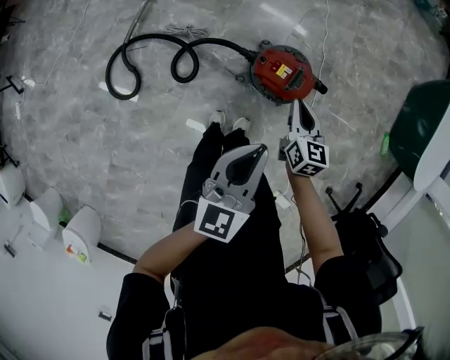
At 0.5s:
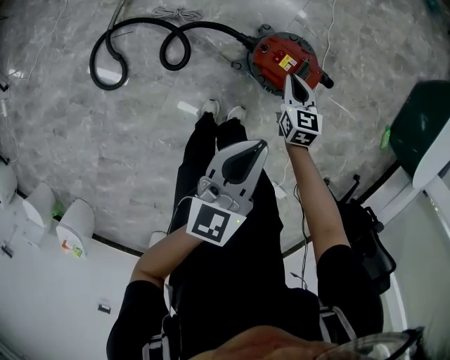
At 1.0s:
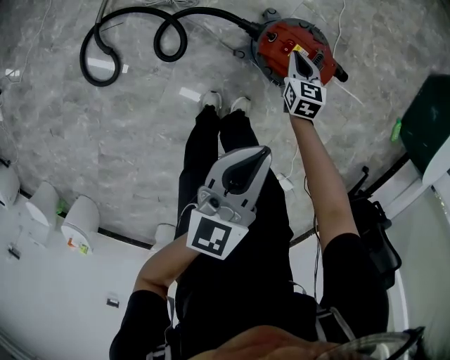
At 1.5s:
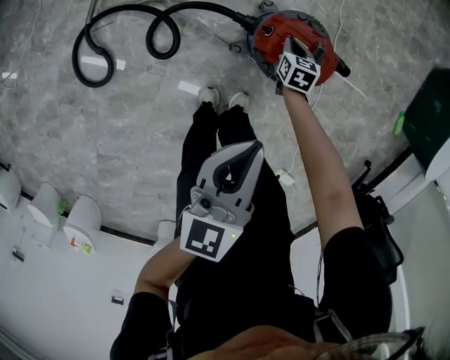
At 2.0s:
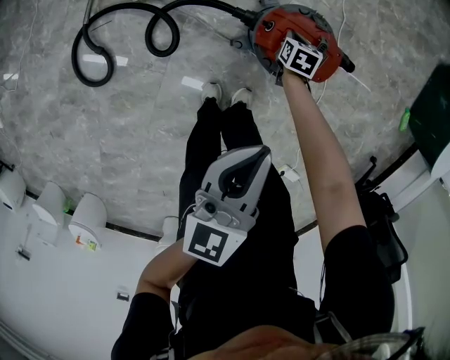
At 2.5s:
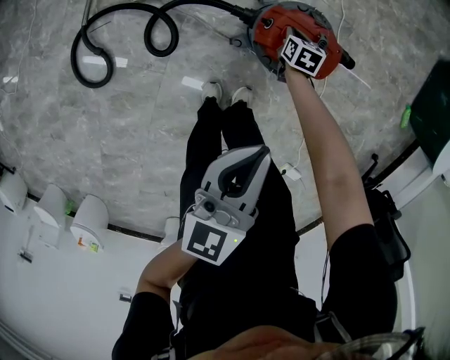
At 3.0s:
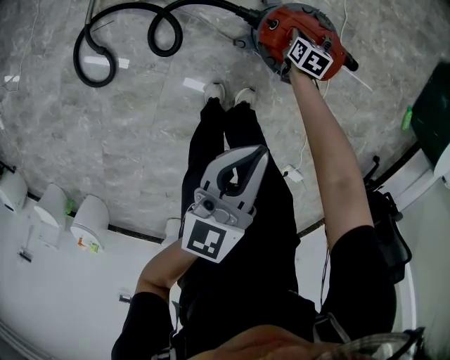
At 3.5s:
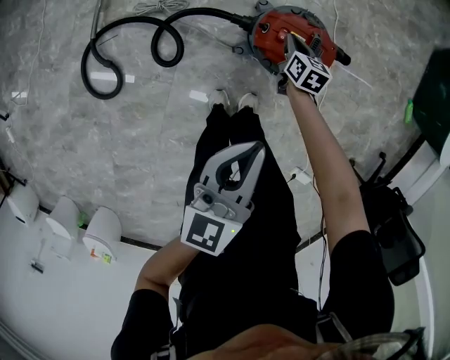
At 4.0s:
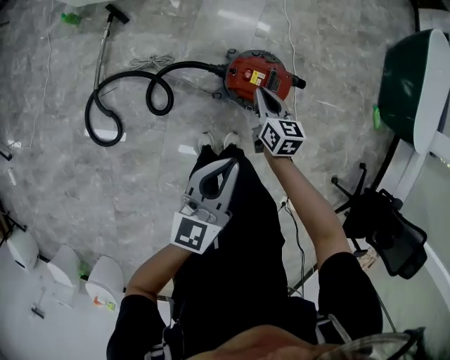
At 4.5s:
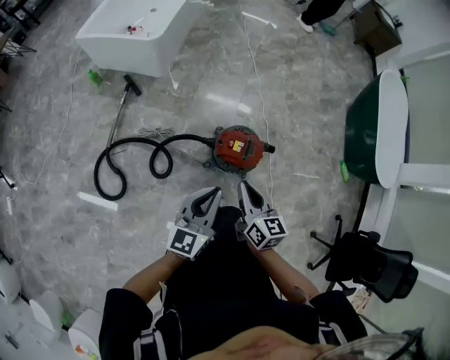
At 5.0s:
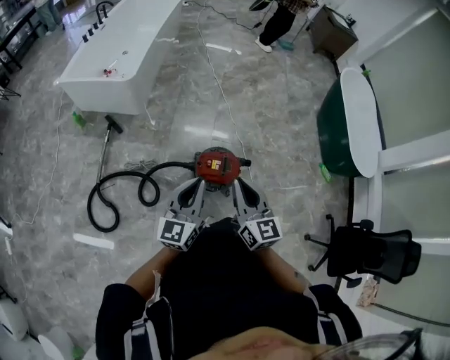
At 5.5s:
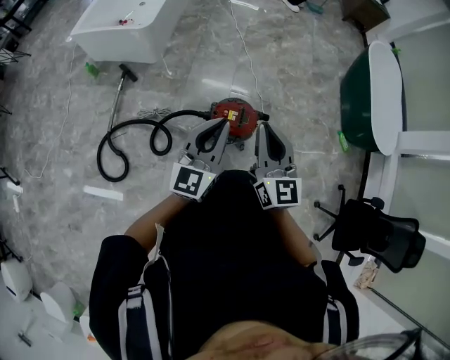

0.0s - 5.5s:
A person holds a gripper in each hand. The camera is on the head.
0.0s - 2.0s: The right gripper moves downward, about 40 cm, and angles its fingers downward, by some 30 degrees. Meanwhile the left gripper goes approximately 15 cm downward.
2.0s - 3.5s: The right gripper heads upward, covering roughly 10 cm.
3.5s - 5.5s: The right gripper shifts about 60 cm upward, and tilts its fingers approximately 40 degrees upward. Meanwhile the left gripper goes about 30 cm upward, and turns by about 30 degrees.

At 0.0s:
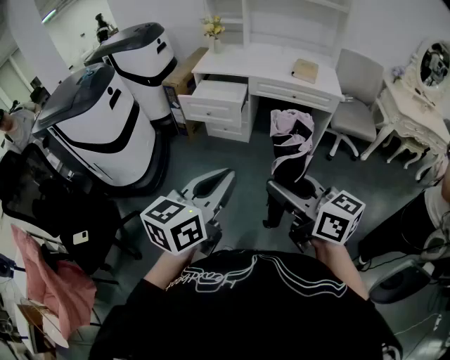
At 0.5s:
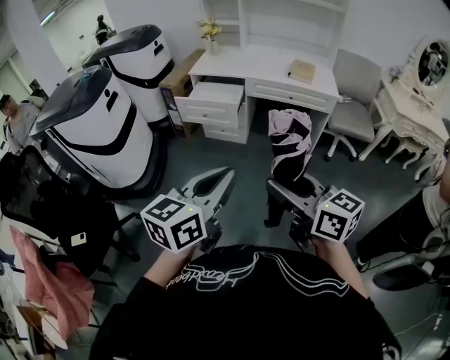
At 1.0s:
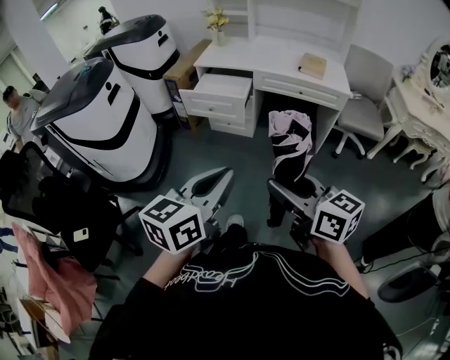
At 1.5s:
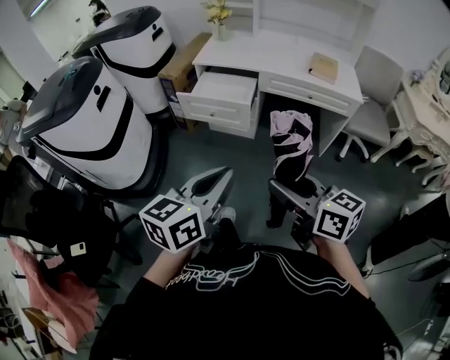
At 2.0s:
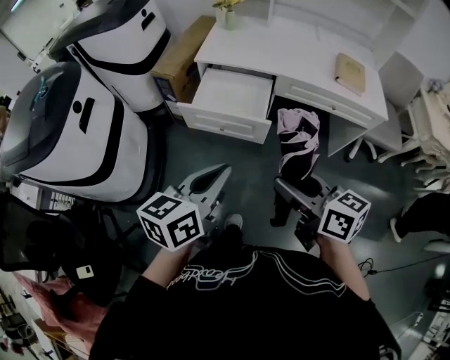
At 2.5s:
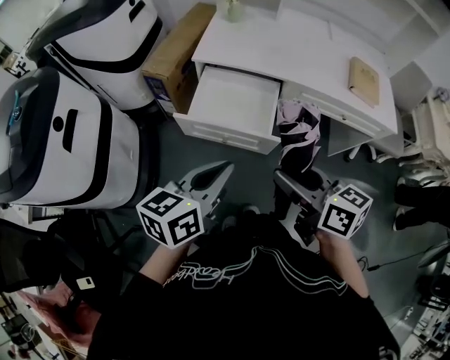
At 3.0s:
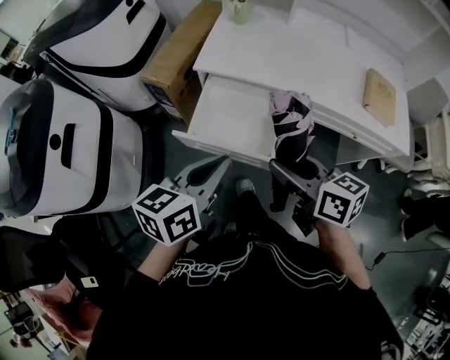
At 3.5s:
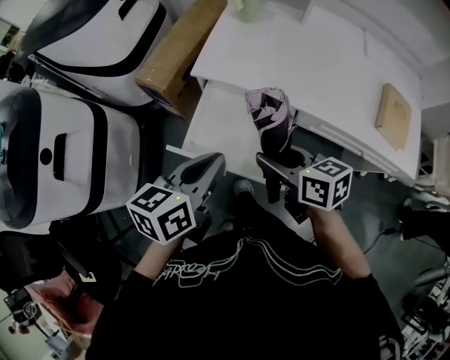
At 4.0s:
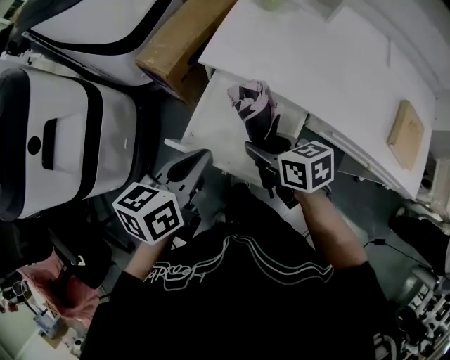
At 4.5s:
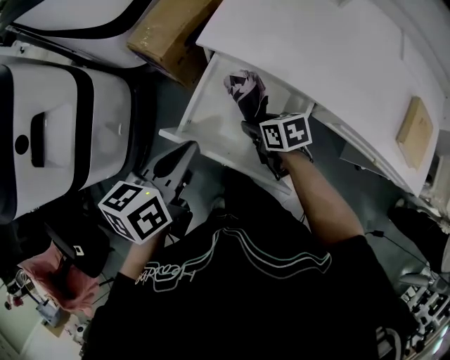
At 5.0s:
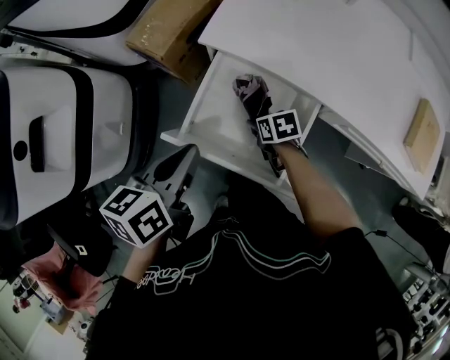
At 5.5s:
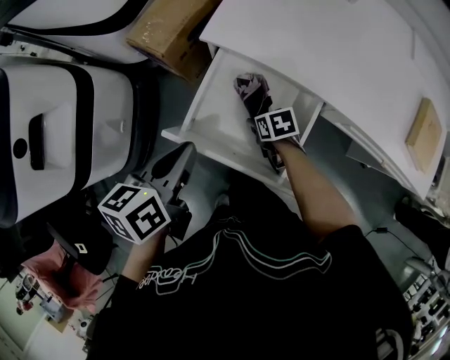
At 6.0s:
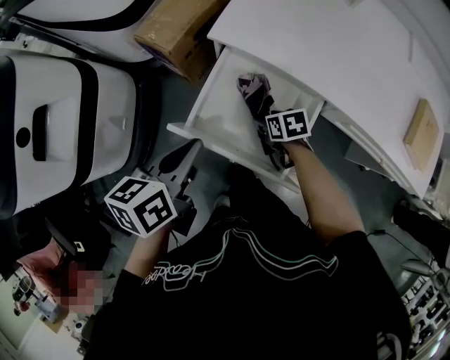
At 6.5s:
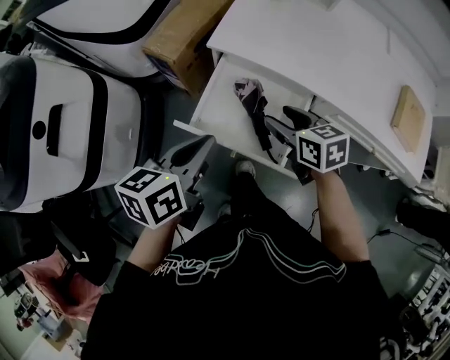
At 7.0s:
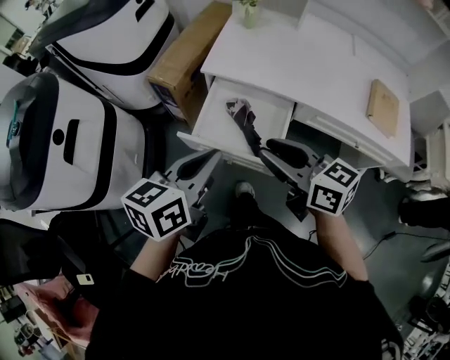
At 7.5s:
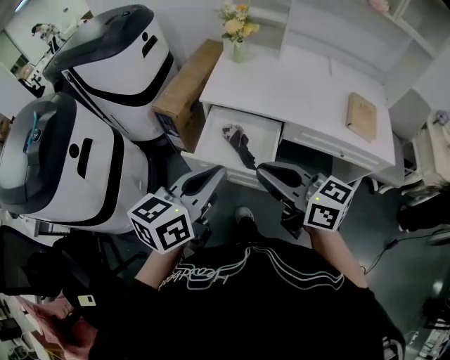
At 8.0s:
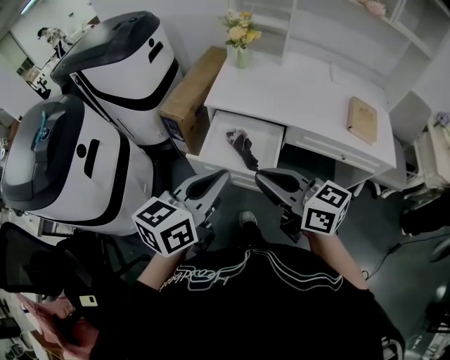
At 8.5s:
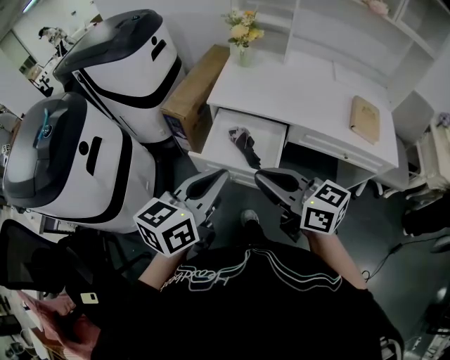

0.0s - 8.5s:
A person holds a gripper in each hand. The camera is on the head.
0.0s - 2.0s: The pair of grippers is taken forward, some 50 cm.
2.0s - 4.0s: The right gripper shifts approximately 50 cm forward and downward, and swivels about 30 degrees. Meanwhile the left gripper goes about 40 cm forward, and rotates approximately 20 degrees.
4.0s - 6.5s: The right gripper reaches approximately 25 cm downward, then returns.
6.5s - 8.5s: Both grippers move backward and upward, about 30 cm. The left gripper turns by some 30 degrees; the right gripper points its fingers roughly 30 degrees further upward, and closes up.

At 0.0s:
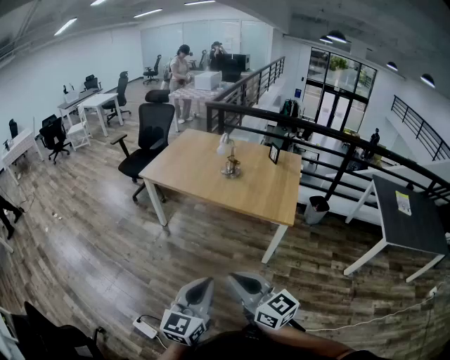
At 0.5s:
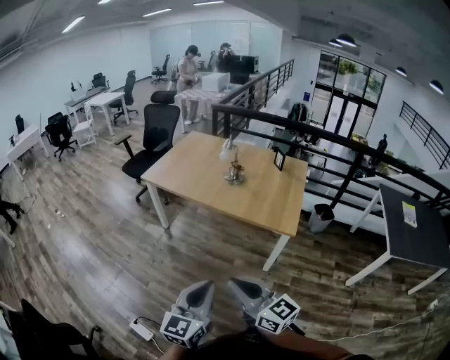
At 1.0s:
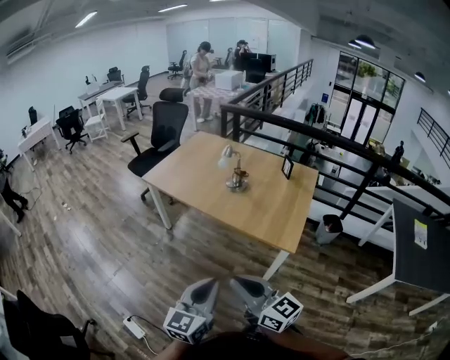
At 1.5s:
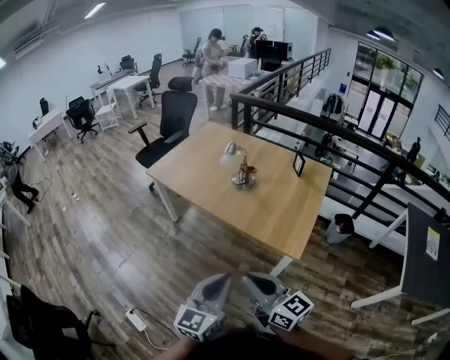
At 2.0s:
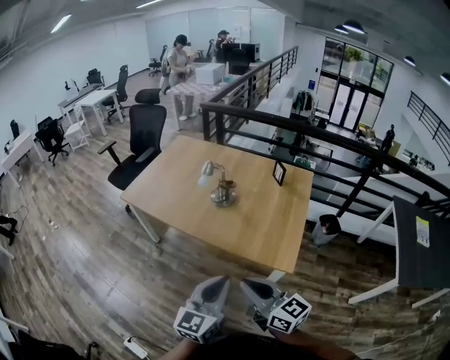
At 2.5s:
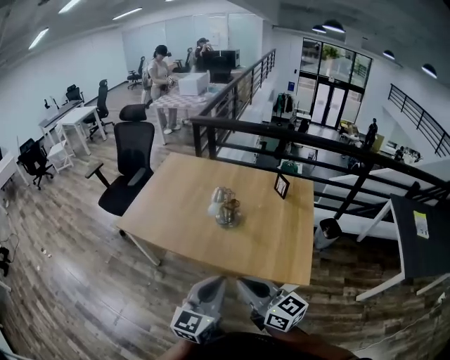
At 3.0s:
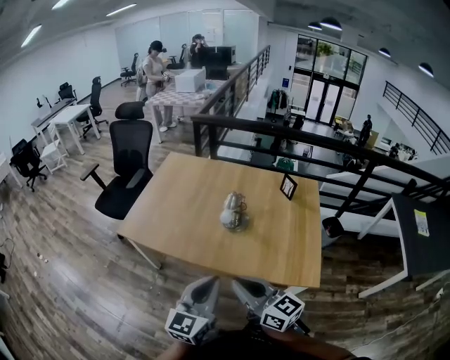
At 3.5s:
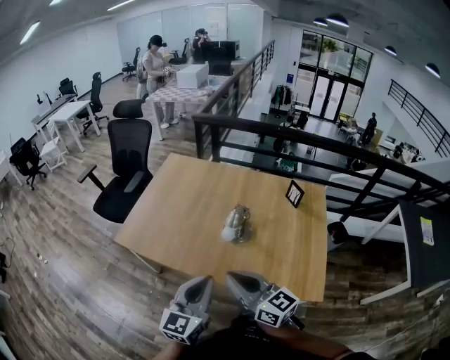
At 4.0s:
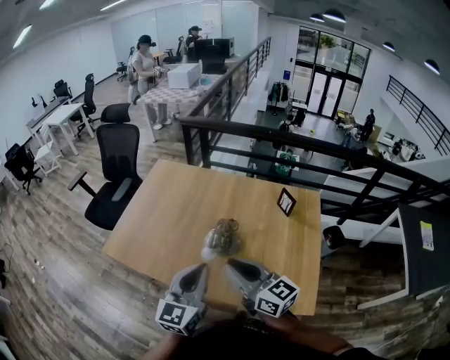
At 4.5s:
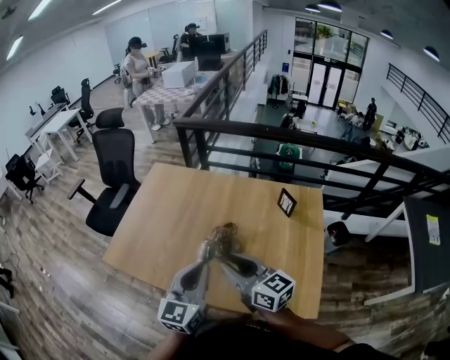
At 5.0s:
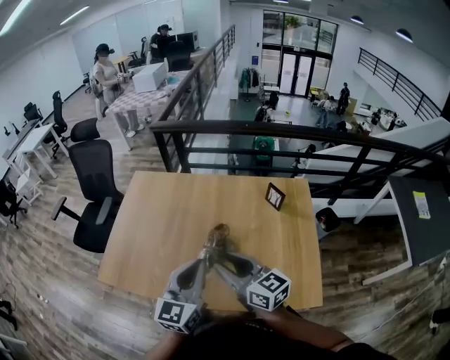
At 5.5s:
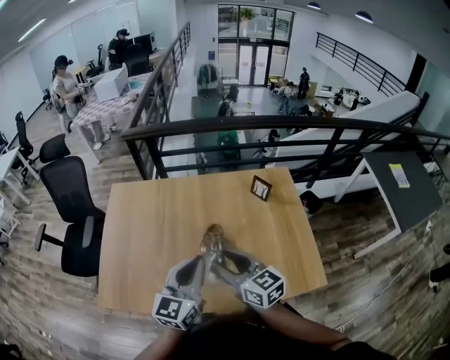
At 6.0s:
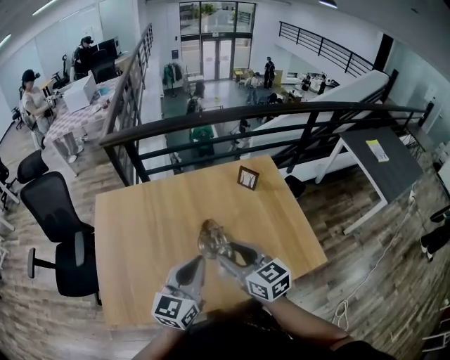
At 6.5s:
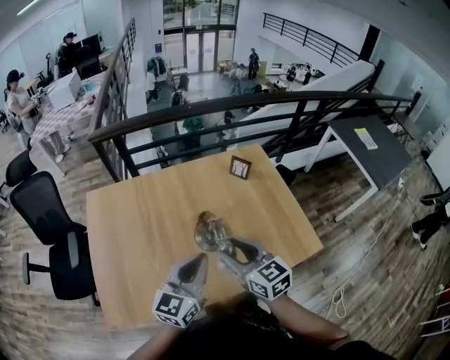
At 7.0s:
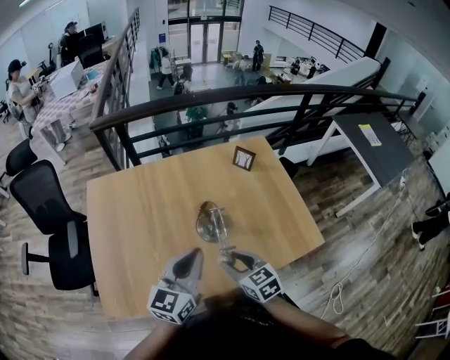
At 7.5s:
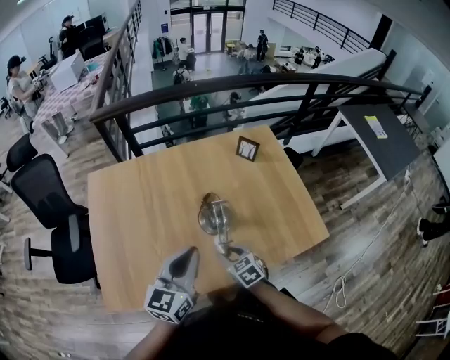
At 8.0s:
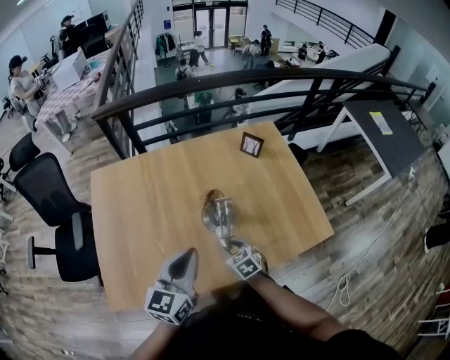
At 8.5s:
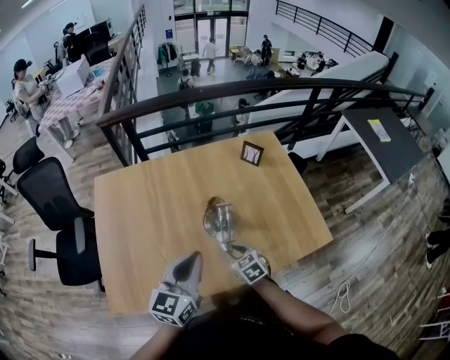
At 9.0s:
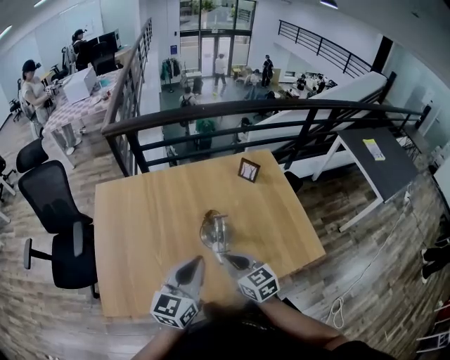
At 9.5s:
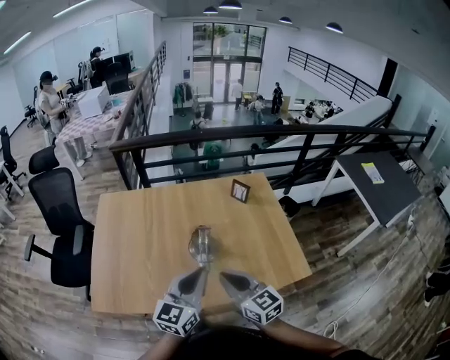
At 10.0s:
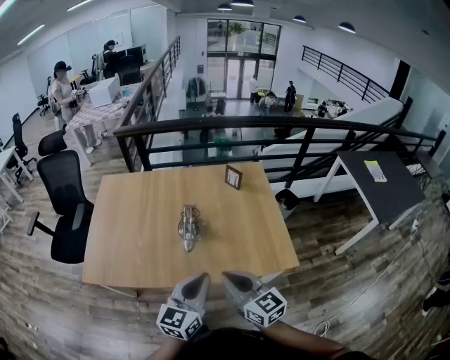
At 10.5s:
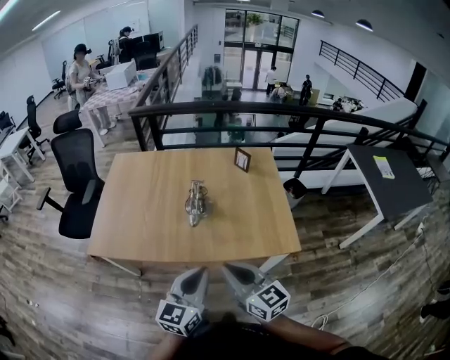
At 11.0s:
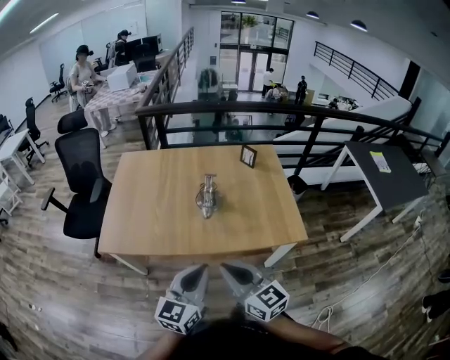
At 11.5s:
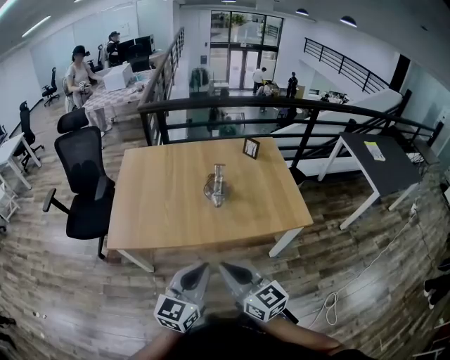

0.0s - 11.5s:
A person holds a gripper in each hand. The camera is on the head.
0.0s - 2.0s: Both grippers travel together forward and to the right, about 35 cm.
2.0s - 4.0s: The grippers both shift forward by about 35 cm.
4.0s - 6.0s: The left gripper ends up about 10 cm from where it was, and changes its angle by some 30 degrees; the right gripper moves about 10 cm, swivels roughly 40 degrees, and opens.
6.0s - 7.5s: The left gripper ends up roughly 5 cm from where it was. Meanwhile the right gripper heads downward, covering roughly 25 cm, and points its fingers about 30 degrees further downward.
7.5s - 9.5s: The right gripper shifts some 25 cm upward, tips its fingers upward by some 40 degrees, and closes its fingers. The left gripper heads to the right and backward, covering about 10 cm.
9.5s - 11.5s: Both grippers move backward, roughly 25 cm.

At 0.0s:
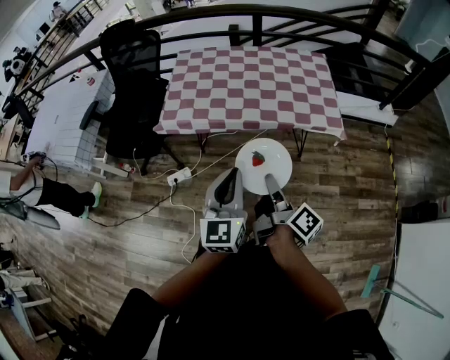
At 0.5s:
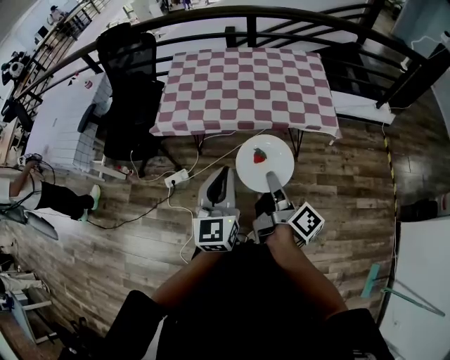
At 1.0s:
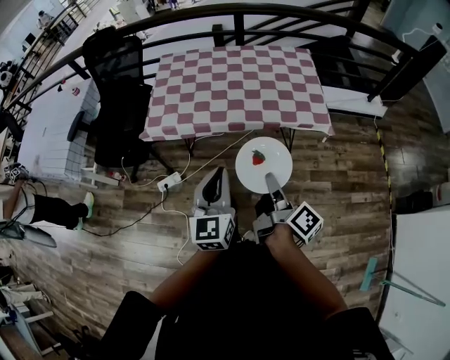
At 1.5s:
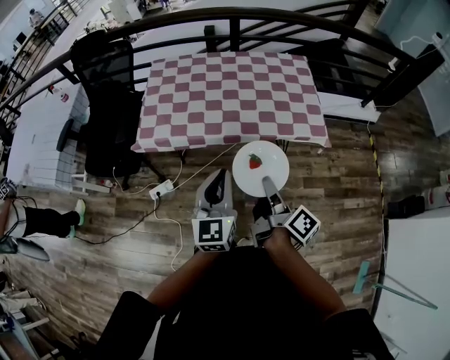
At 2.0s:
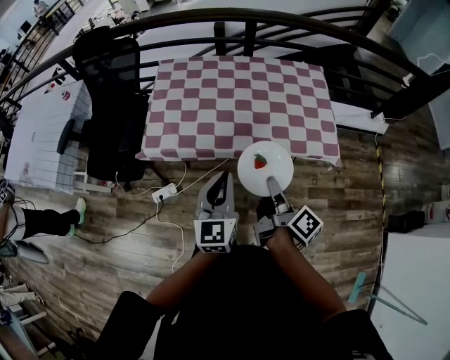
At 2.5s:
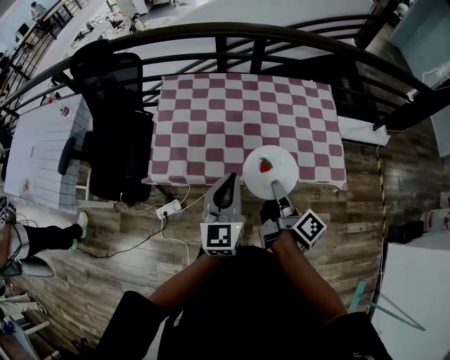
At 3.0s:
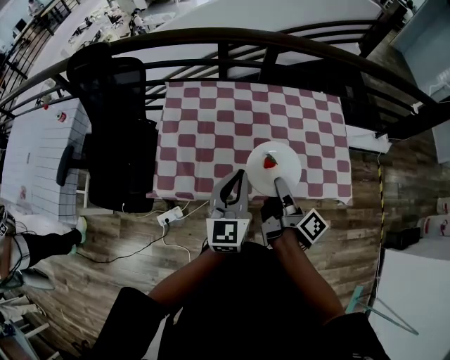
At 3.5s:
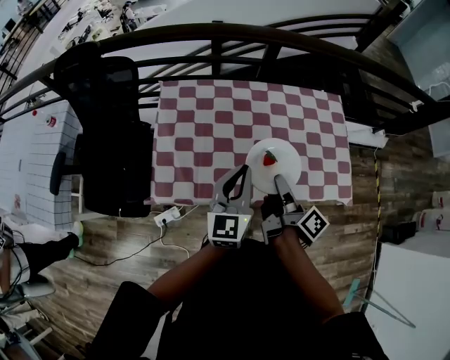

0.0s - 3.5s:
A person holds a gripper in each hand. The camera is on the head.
0.0s - 2.0s: The left gripper ends up approximately 20 cm from where it was.
2.0s - 3.5s: The left gripper changes place by roughly 25 cm.
